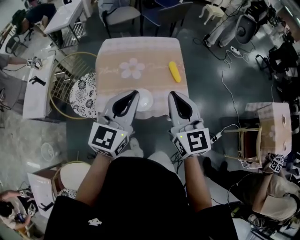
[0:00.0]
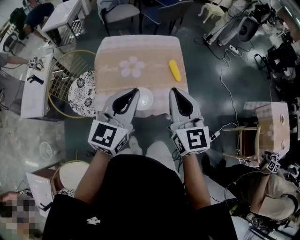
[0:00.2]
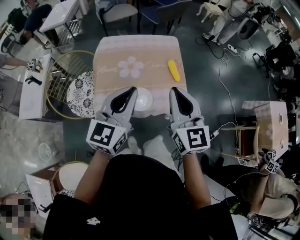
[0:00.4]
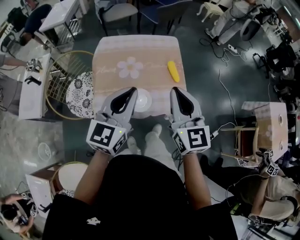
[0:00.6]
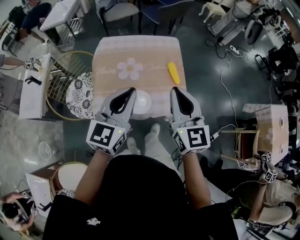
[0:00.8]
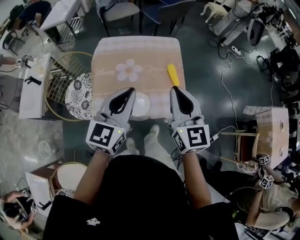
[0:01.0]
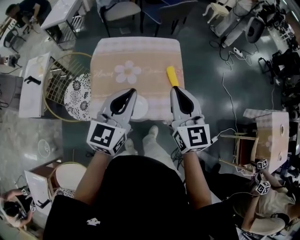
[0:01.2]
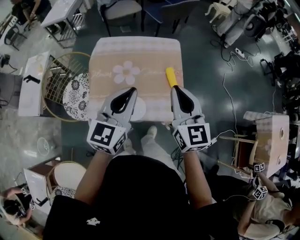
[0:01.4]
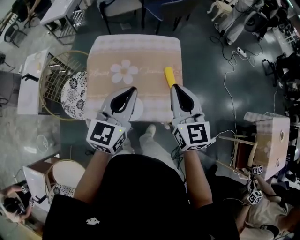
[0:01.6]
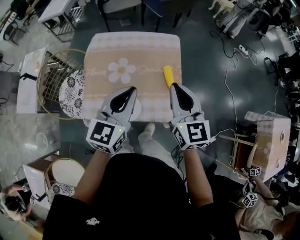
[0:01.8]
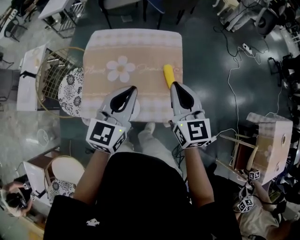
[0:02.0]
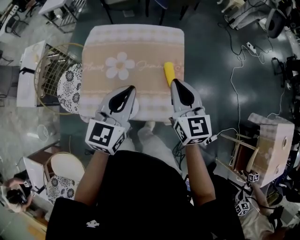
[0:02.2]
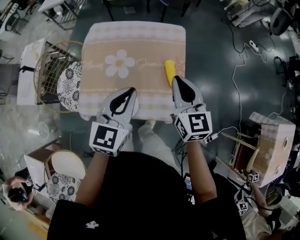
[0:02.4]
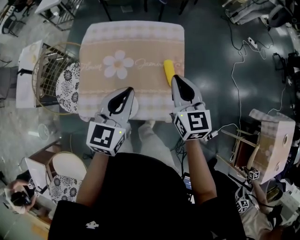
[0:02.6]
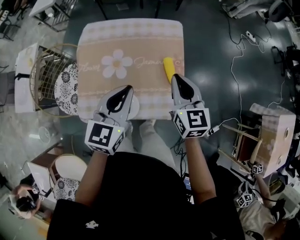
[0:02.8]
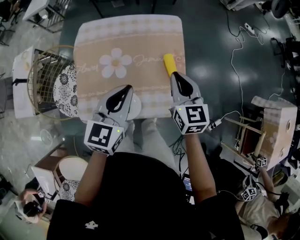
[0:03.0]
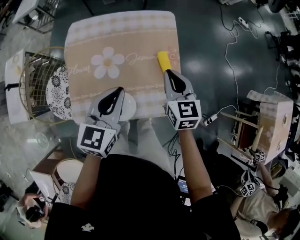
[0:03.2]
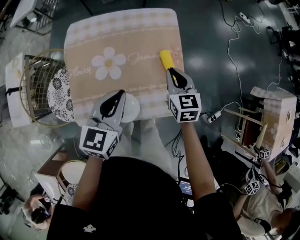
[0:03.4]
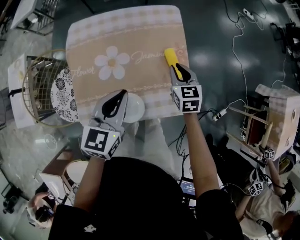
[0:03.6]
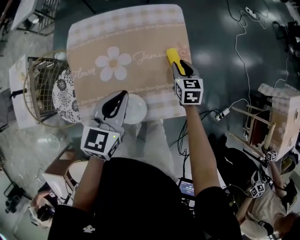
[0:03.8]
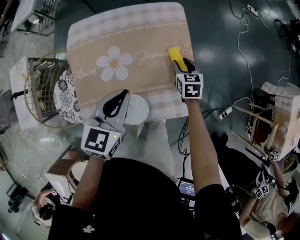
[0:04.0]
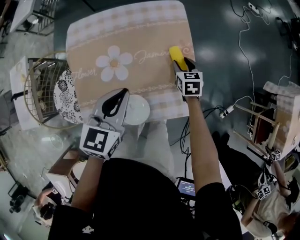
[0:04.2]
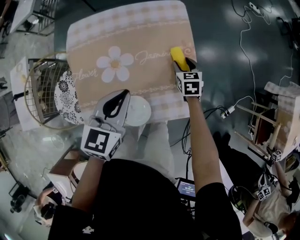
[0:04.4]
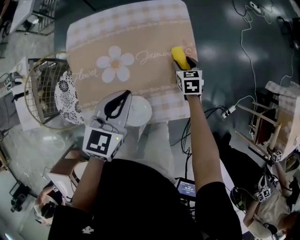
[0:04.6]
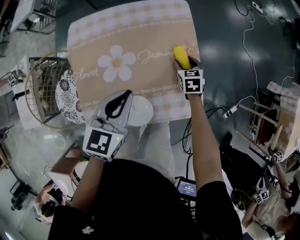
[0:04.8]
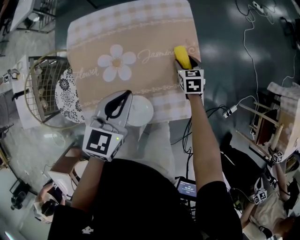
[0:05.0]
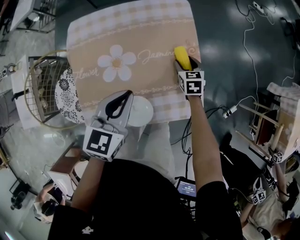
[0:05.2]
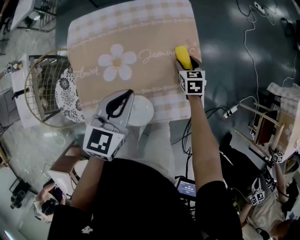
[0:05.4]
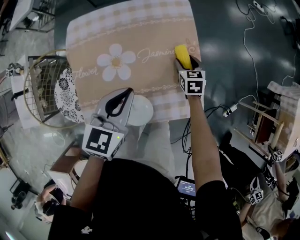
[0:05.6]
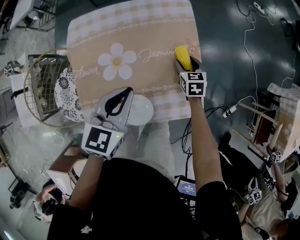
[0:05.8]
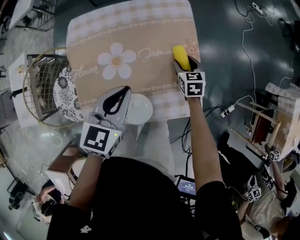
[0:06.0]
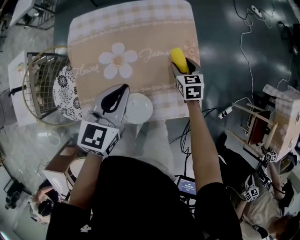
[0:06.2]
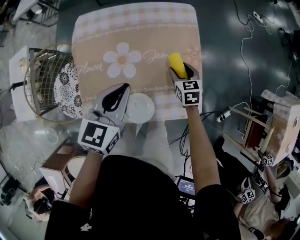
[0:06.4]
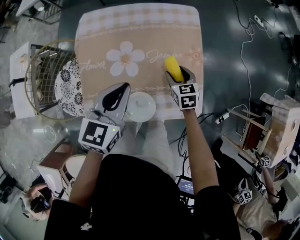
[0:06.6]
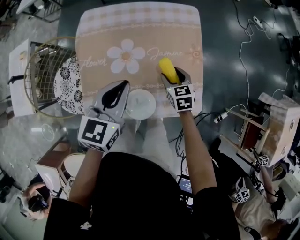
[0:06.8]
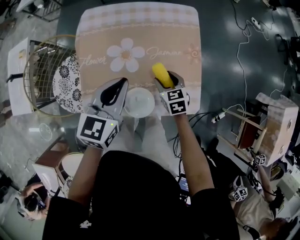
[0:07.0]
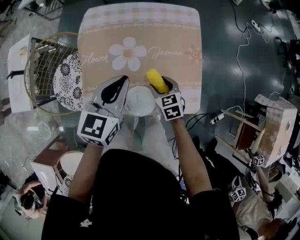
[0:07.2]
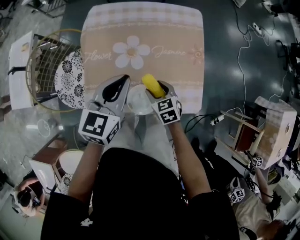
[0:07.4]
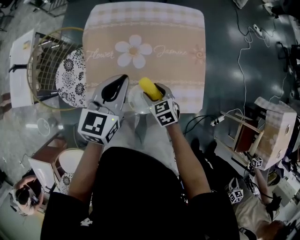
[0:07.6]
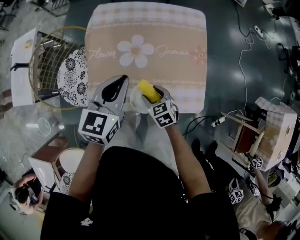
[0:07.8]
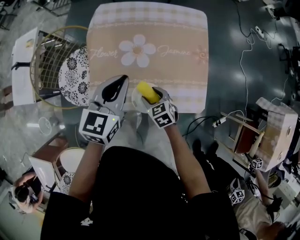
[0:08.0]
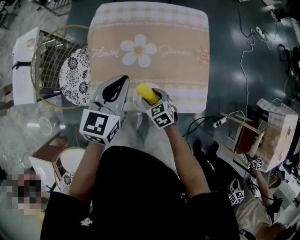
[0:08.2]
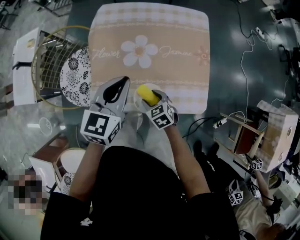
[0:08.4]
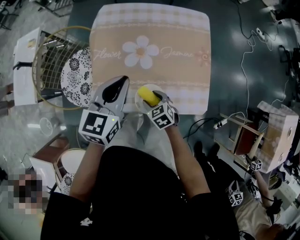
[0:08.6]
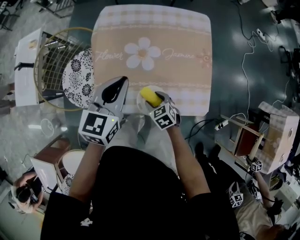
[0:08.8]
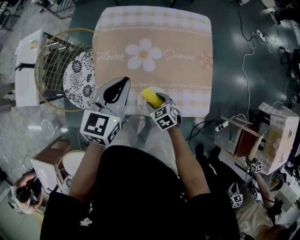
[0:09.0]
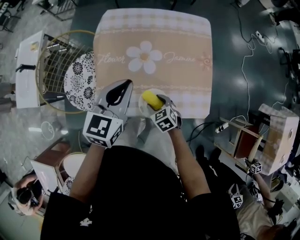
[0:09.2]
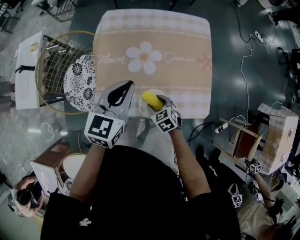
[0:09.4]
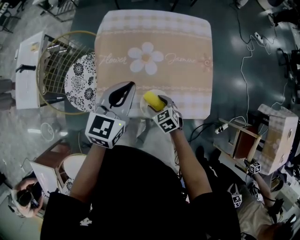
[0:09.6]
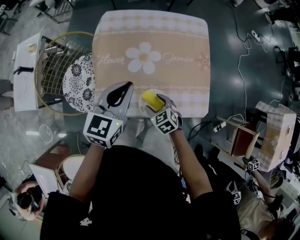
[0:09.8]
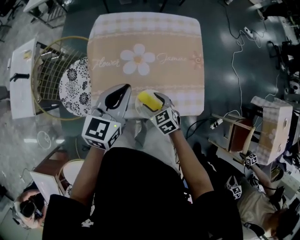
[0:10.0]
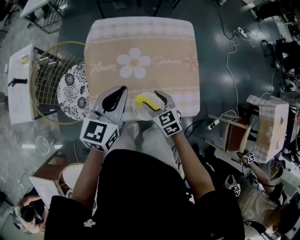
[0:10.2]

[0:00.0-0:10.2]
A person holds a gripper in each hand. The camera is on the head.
0:00.0 to 0:01.4: The two grippers go some 10 cm forward.
0:01.4 to 0:03.0: Both grippers travel together downward and forward, some 15 cm.
0:03.0 to 0:04.4: The right gripper is displaced downward by some 25 cm, swivels some 30 degrees, and opens its fingers. The left gripper goes roughly 10 cm downward.
0:04.4 to 0:05.8: The grippers make only small movements.
0:05.8 to 0:07.2: The left gripper is displaced to the left by some 5 cm; the right gripper heads to the left and backward, covering some 20 cm, and turns by roughly 20 degrees.
0:07.2 to 0:08.8: The left gripper shifts about 5 cm to the left; the right gripper heads to the left and backward, covering roughly 10 cm.
0:08.8 to 0:10.2: The right gripper shifts roughly 10 cm upward.

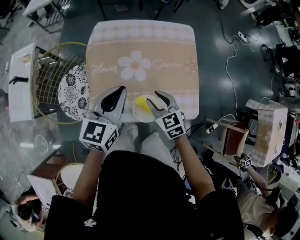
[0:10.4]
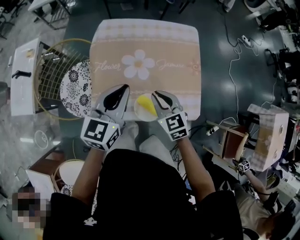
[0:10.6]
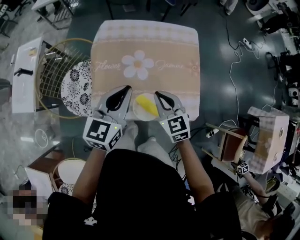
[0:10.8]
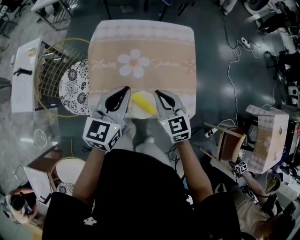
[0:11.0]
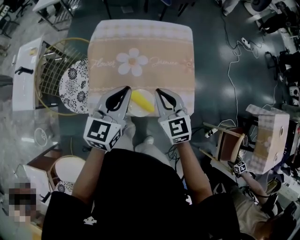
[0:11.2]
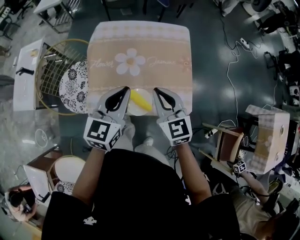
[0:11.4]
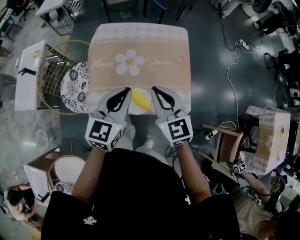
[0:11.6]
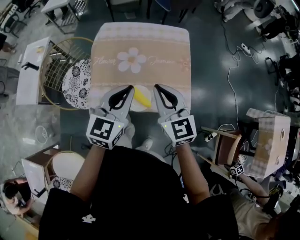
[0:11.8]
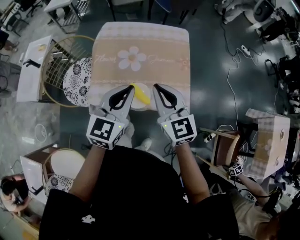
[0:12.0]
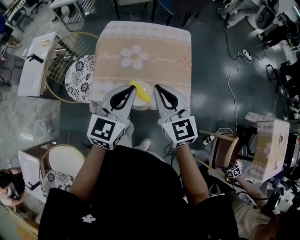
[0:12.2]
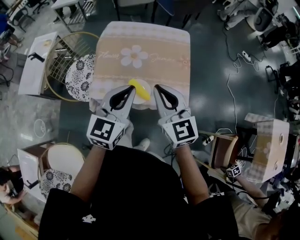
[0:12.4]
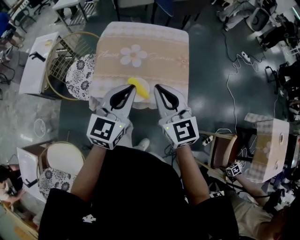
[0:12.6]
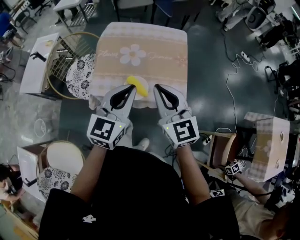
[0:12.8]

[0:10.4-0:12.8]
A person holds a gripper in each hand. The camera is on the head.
0:10.4 to 0:11.6: The right gripper is displaced upward by approximately 15 cm, rotates some 20 degrees, and closes; the left gripper moves to the right and backward, some 10 cm.
0:11.6 to 0:12.8: The grippers both shift backward and upward by about 15 cm.

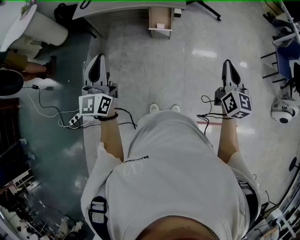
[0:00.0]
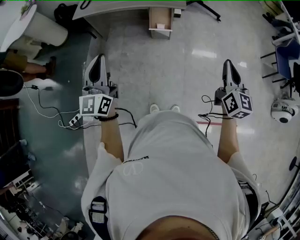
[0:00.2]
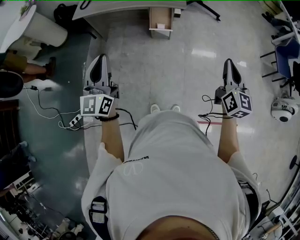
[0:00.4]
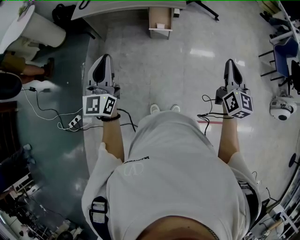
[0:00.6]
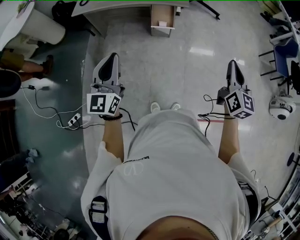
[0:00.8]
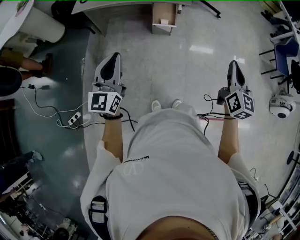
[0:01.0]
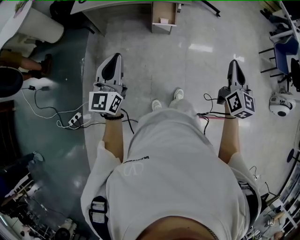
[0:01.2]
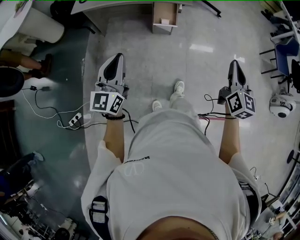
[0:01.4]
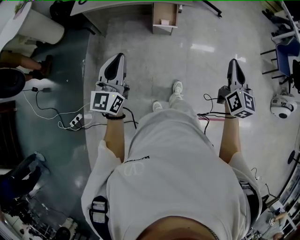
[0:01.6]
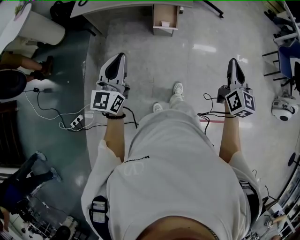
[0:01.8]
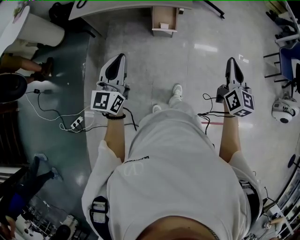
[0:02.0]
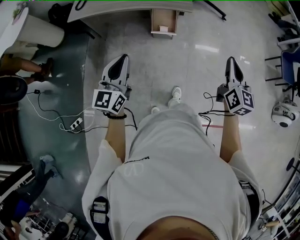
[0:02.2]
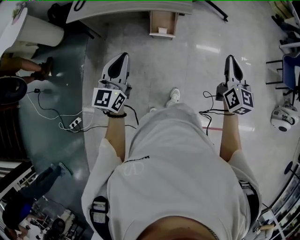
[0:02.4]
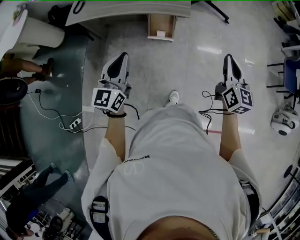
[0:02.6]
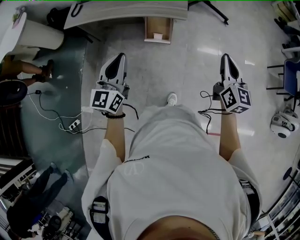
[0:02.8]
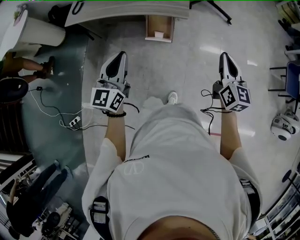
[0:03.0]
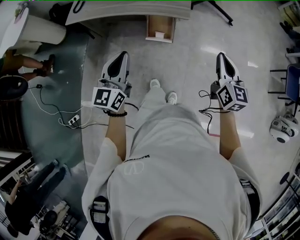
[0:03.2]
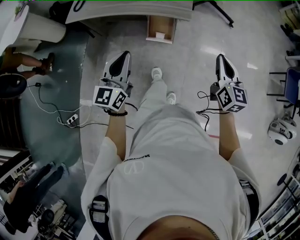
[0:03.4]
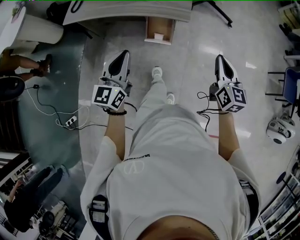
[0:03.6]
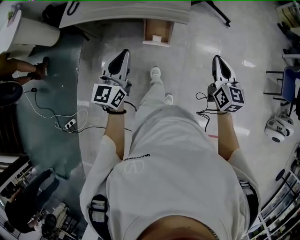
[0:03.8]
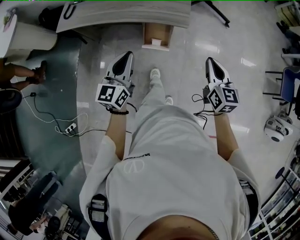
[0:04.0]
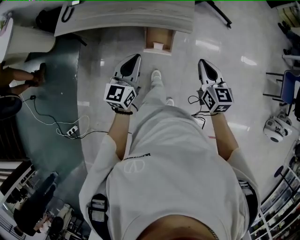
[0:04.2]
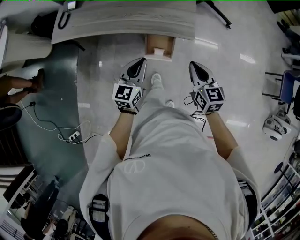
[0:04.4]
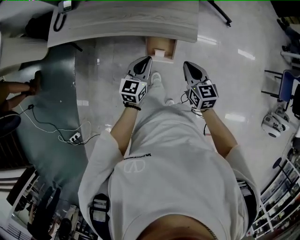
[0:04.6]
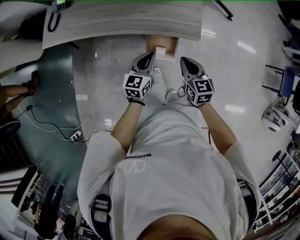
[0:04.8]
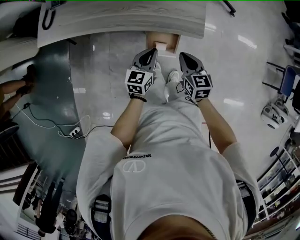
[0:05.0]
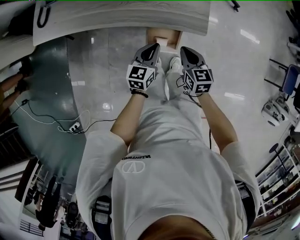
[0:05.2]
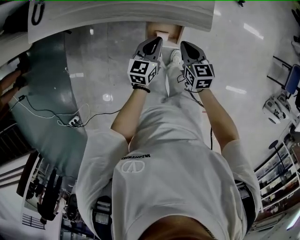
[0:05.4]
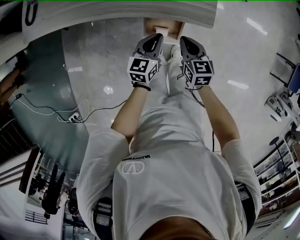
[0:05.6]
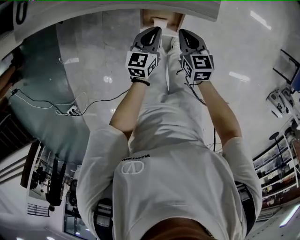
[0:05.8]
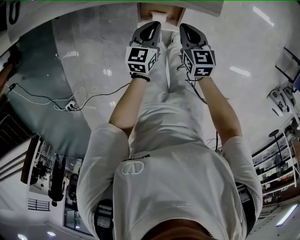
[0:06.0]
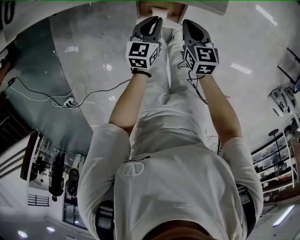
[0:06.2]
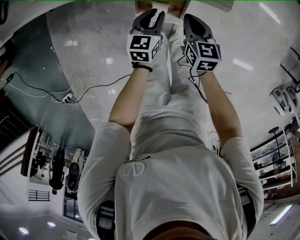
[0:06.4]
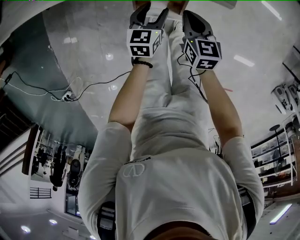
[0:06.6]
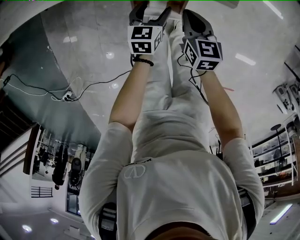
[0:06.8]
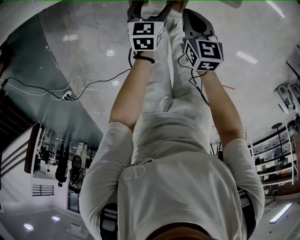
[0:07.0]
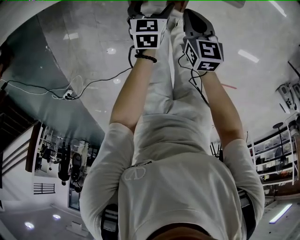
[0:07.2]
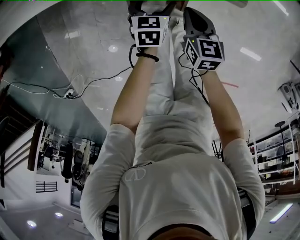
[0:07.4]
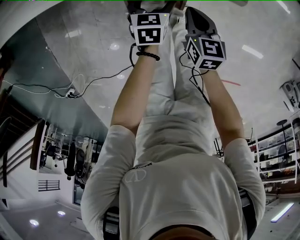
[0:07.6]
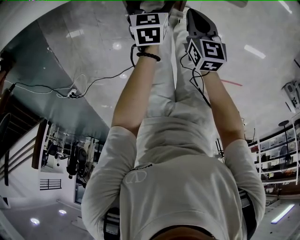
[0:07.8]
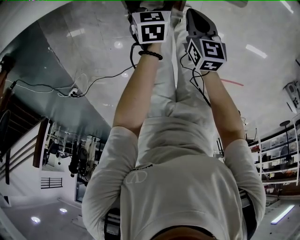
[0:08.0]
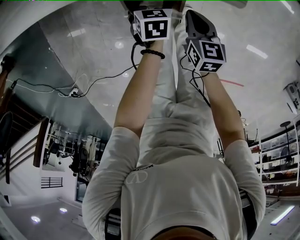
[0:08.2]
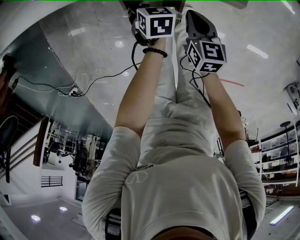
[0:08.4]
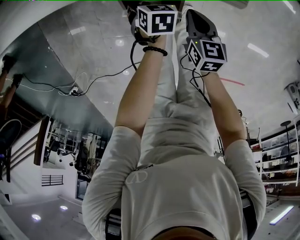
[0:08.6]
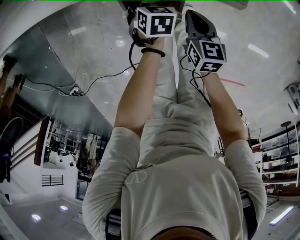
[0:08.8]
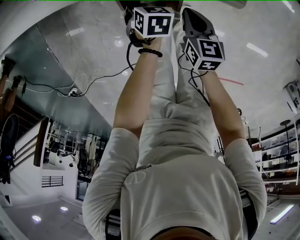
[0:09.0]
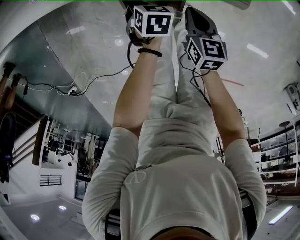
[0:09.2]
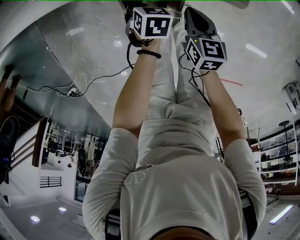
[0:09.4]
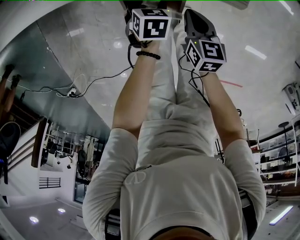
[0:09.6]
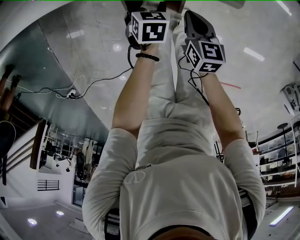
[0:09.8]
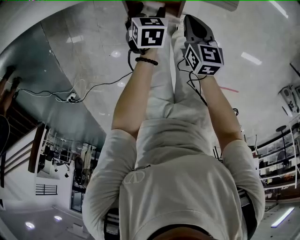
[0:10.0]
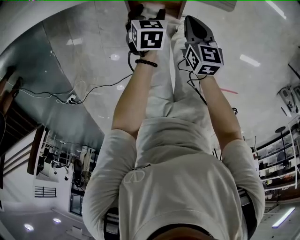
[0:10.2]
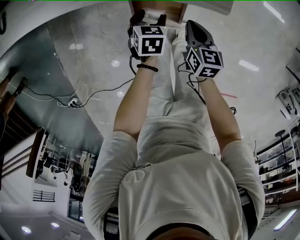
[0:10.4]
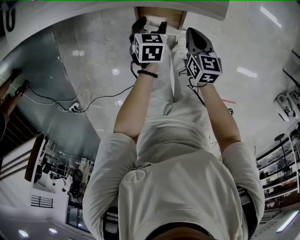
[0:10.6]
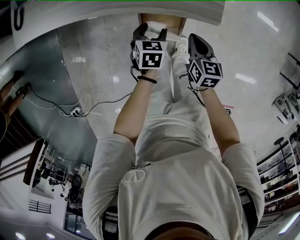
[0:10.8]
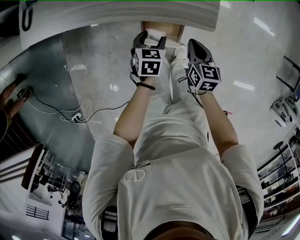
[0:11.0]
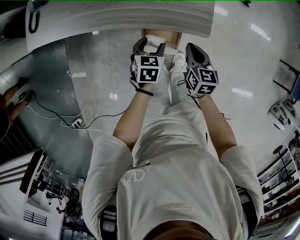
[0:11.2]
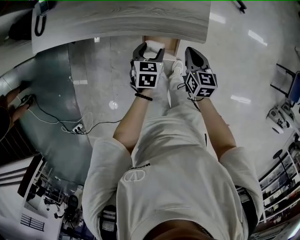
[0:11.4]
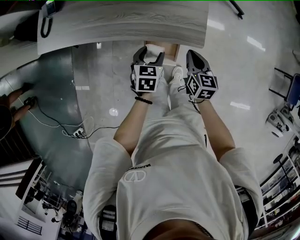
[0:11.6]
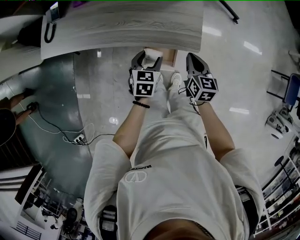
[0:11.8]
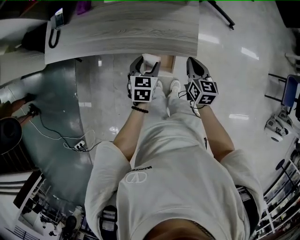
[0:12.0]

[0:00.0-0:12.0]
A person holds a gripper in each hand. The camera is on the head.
0:00.0 to 0:01.6: The left gripper moves downward, approximately 5 cm; the right gripper heads to the left, covering roughly 5 cm.
0:01.6 to 0:03.0: The right gripper goes roughly 25 cm forward, while the left gripper moves forward and to the right, about 25 cm.
0:03.0 to 0:04.4: The left gripper moves forward and downward, about 25 cm; the right gripper goes roughly 30 cm forward, to the left and downward, and rotates roughly 20 degrees.
0:04.4 to 0:06.0: The left gripper shifts roughly 30 cm downward, and changes its angle by approximately 20 degrees. Meanwhile the right gripper goes some 30 cm downward and forward.
0:06.0 to 0:07.6: The grippers both shift downward by approximately 15 cm. The left gripper rotates about 20 degrees, and opens up.
0:07.6 to 0:09.0: The left gripper swivels about 20 degrees, and closes up.
0:09.0 to 0:10.4: The grippers both shift upward by some 10 cm.
0:10.4 to 0:12.0: The two grippers go approximately 30 cm upward. The left gripper rotates approximately 20 degrees.
